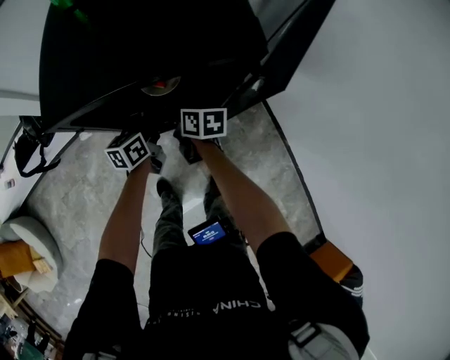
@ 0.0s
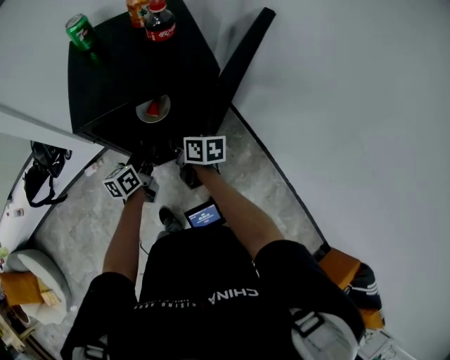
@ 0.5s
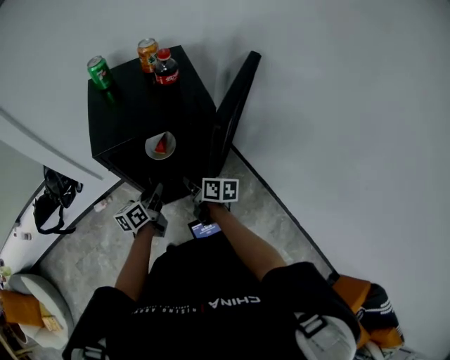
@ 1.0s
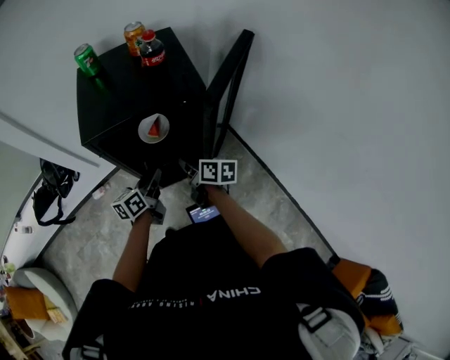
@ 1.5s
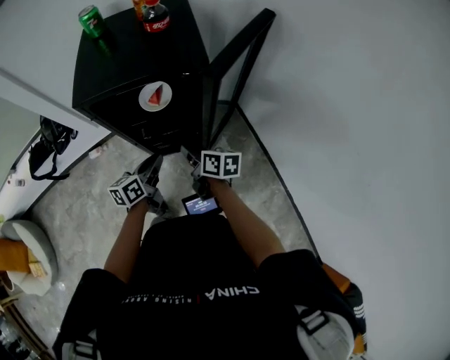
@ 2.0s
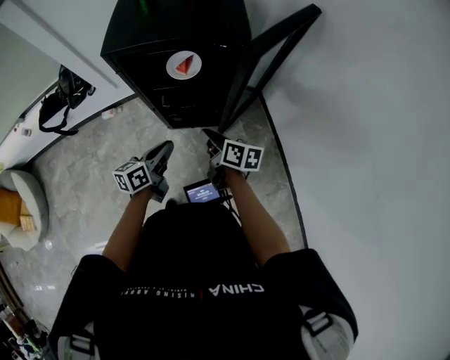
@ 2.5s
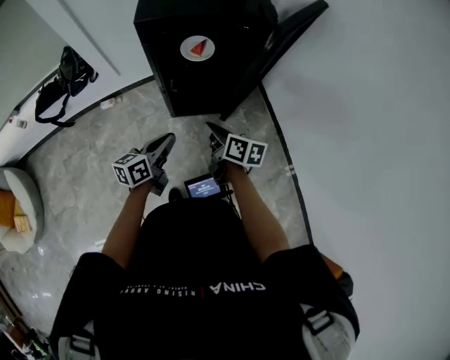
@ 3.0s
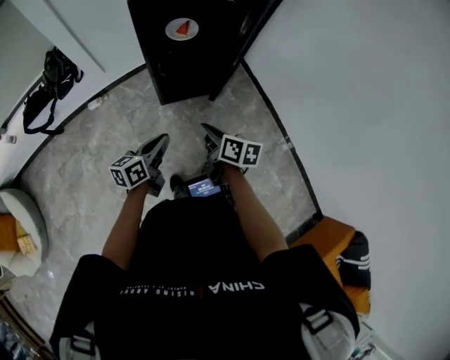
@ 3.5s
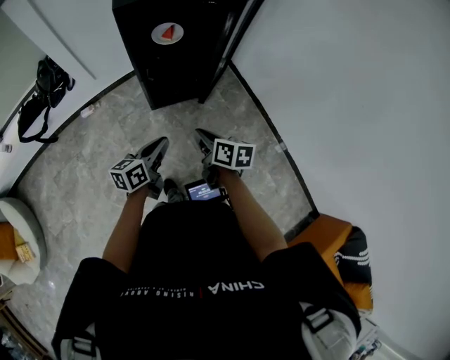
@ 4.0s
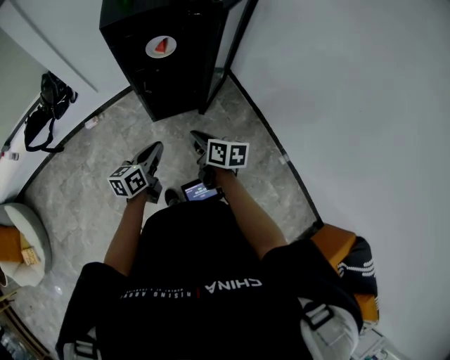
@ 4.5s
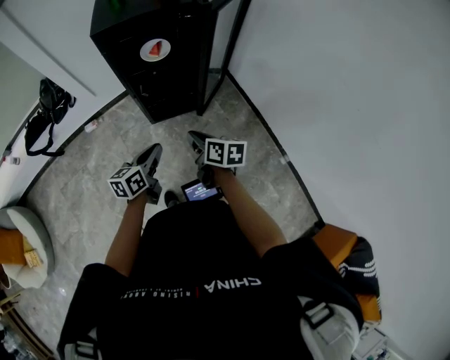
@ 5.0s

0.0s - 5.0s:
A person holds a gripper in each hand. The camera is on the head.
0.0s - 2.5s: The left gripper moves some 25 cm.
2.5s - 5.0s: The left gripper changes place by about 15 cm.

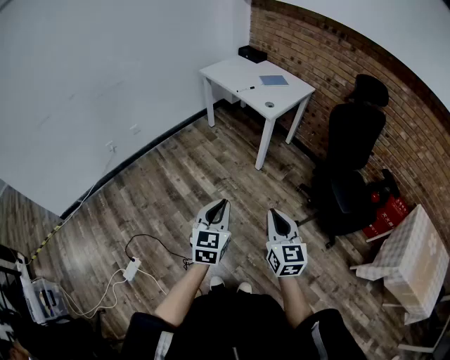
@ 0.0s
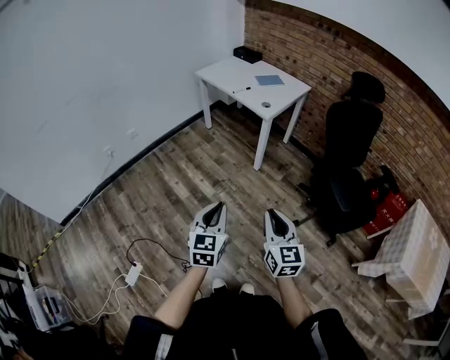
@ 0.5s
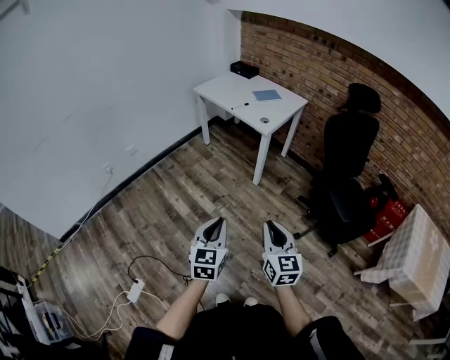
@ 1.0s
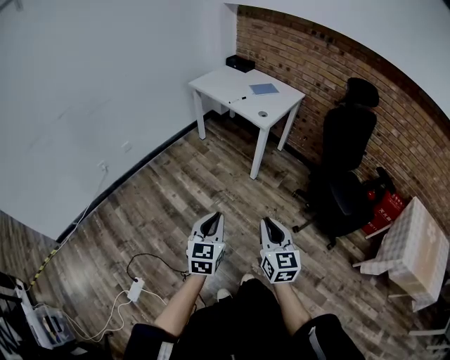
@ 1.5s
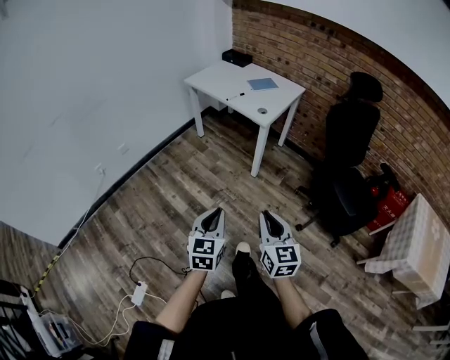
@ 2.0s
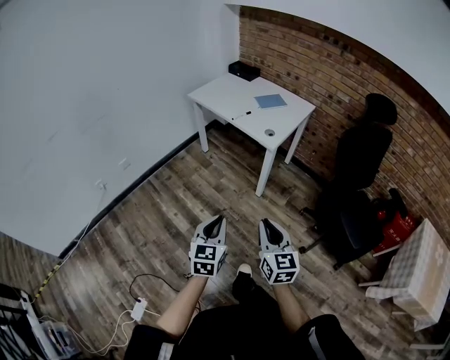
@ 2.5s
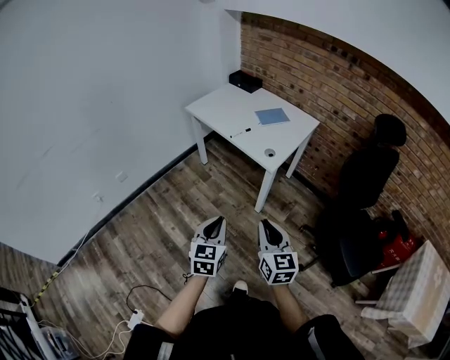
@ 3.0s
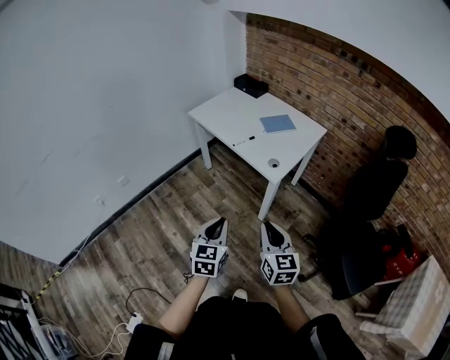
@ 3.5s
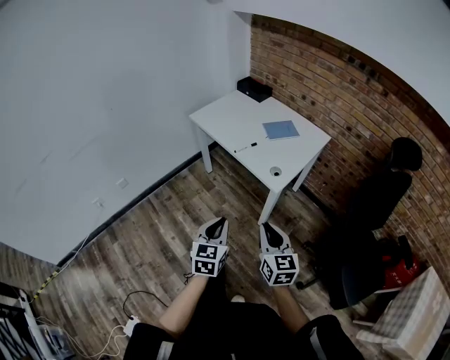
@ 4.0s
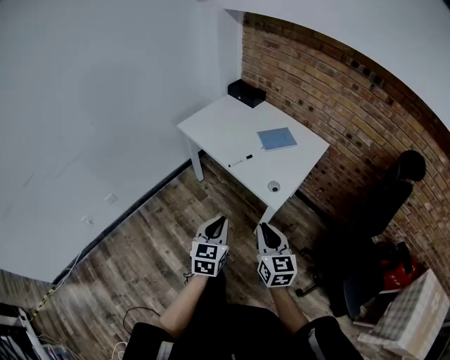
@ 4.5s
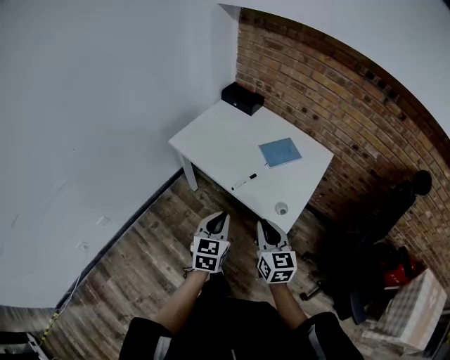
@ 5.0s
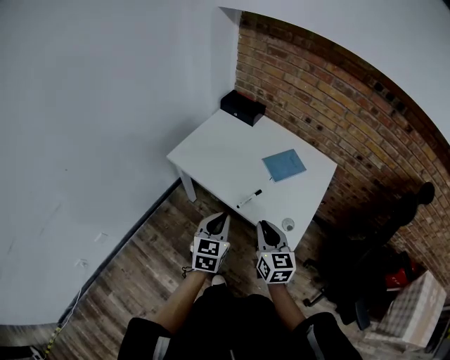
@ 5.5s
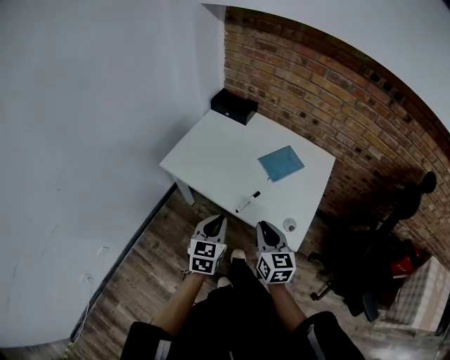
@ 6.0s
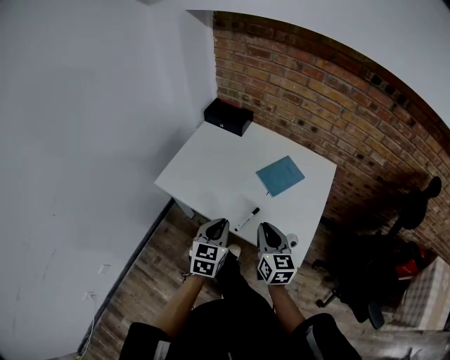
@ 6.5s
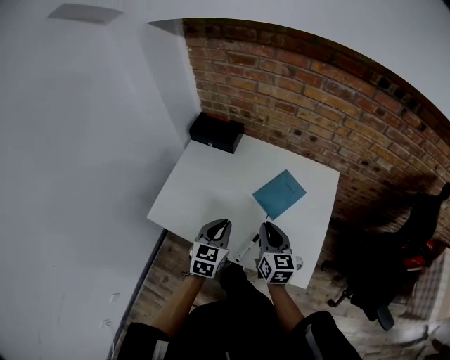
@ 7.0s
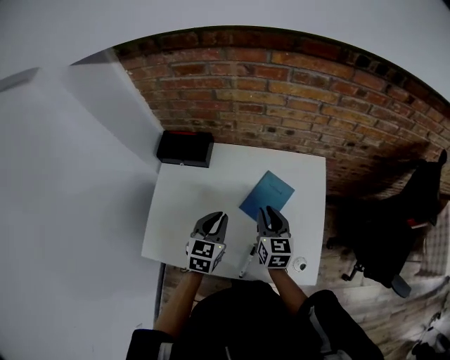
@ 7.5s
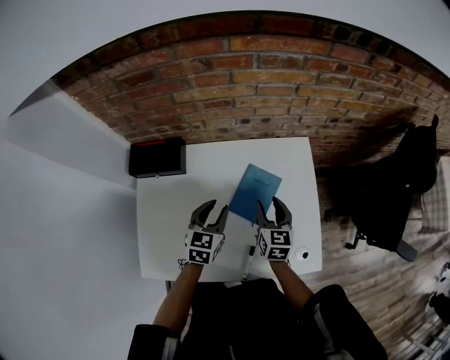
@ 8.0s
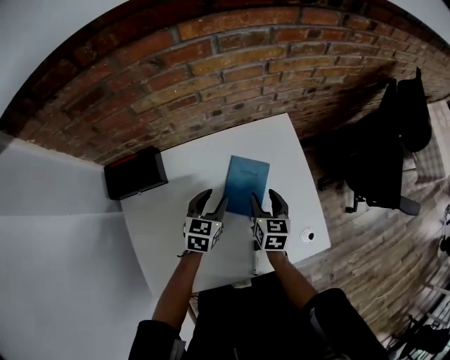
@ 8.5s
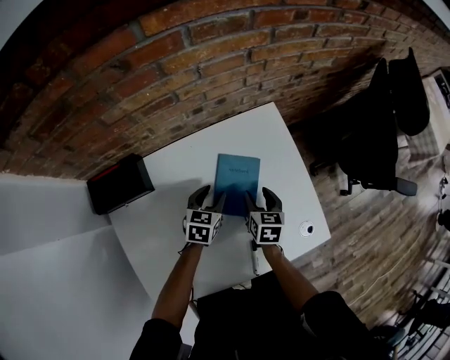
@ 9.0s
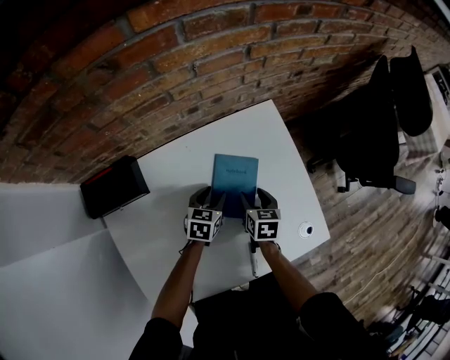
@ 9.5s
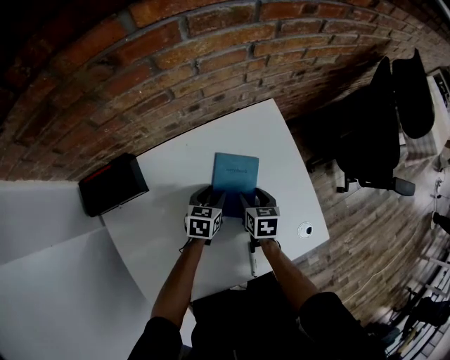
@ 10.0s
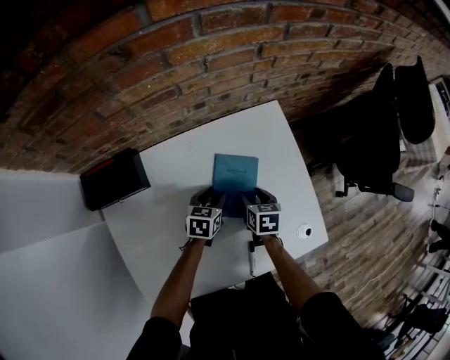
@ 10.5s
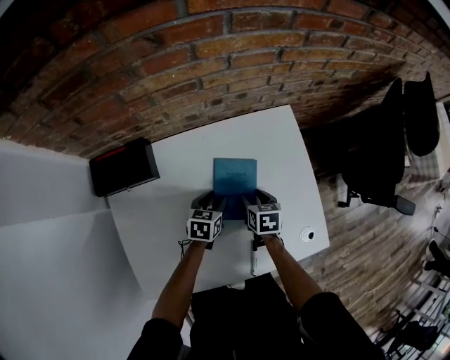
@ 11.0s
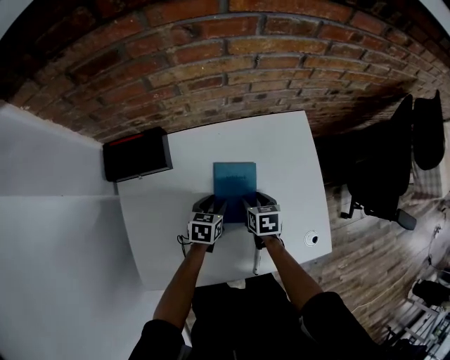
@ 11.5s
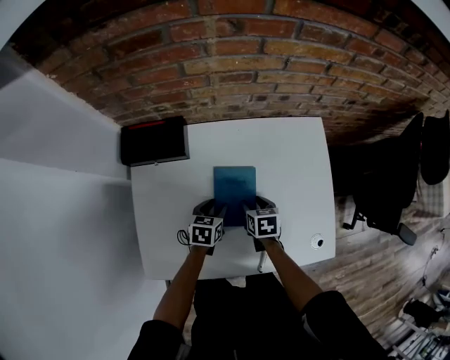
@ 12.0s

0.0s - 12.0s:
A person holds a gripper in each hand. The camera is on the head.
0.0s - 2.0s: The two grippers go roughly 10 cm forward and to the left.
2.0s - 4.0s: Both grippers move forward, about 40 cm.
4.0s - 6.0s: Both grippers are carried forward, about 40 cm.
6.0s - 8.0s: The right gripper changes place by about 40 cm, rotates some 40 degrees, and opens its fingers. The left gripper ends up approximately 40 cm from where it was, swivels some 40 degrees, and opens its fingers.
8.0s - 10.0s: The left gripper is displaced downward and forward by roughly 20 cm, and swivels some 30 degrees, while the right gripper goes approximately 15 cm downward, and turns by approximately 30 degrees.
10.0s - 12.0s: The right gripper moves to the left and backward, approximately 10 cm, and rotates some 20 degrees; the left gripper shifts about 15 cm backward and to the left.

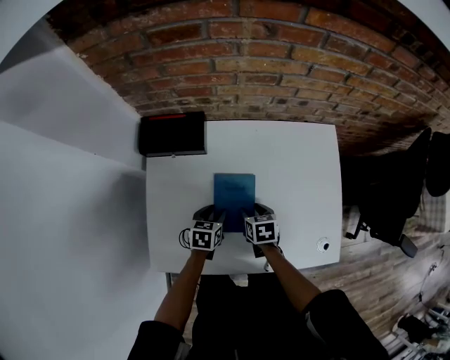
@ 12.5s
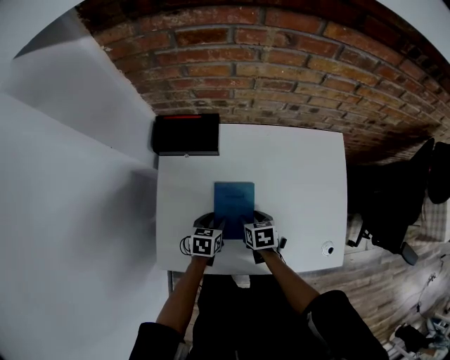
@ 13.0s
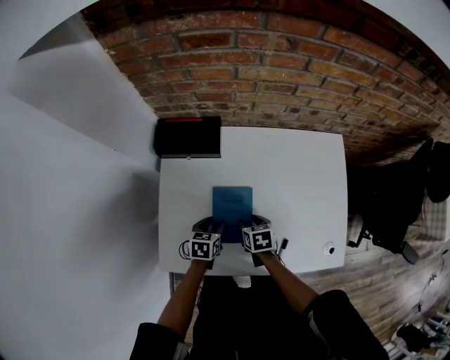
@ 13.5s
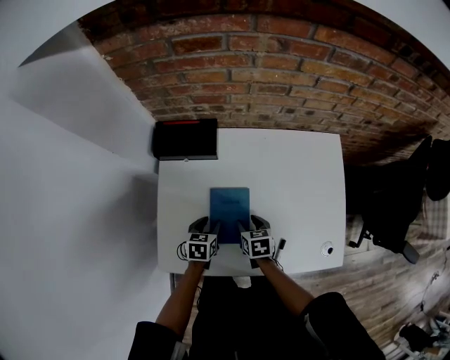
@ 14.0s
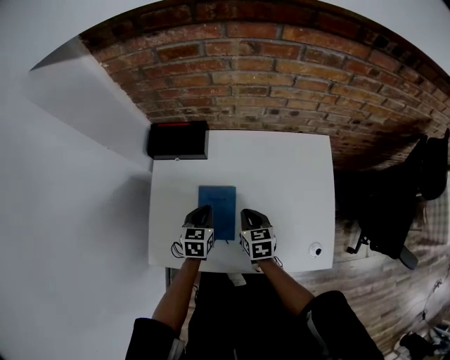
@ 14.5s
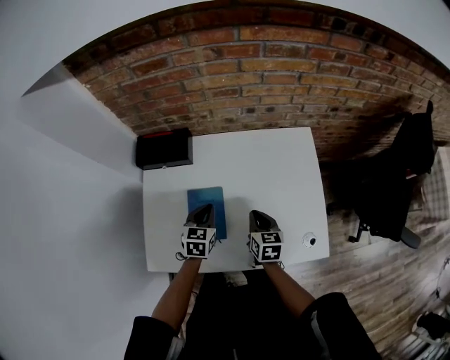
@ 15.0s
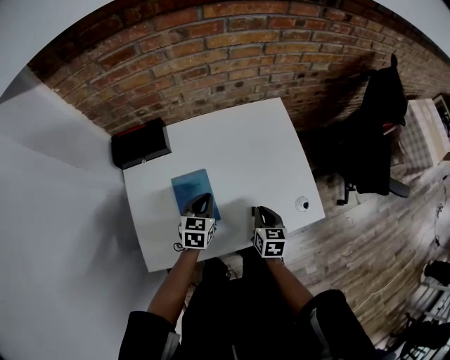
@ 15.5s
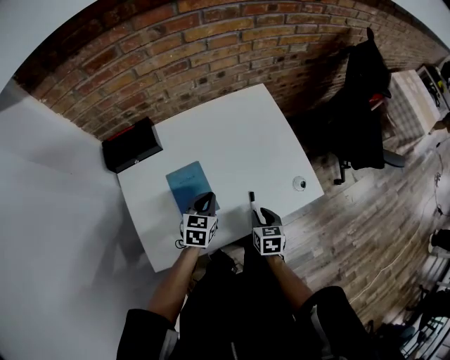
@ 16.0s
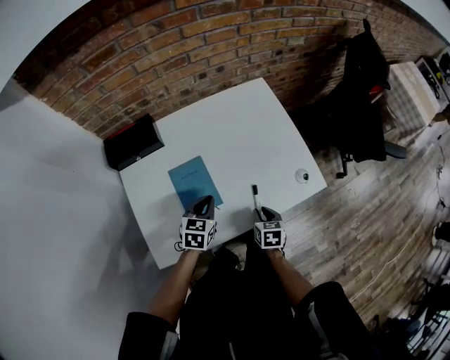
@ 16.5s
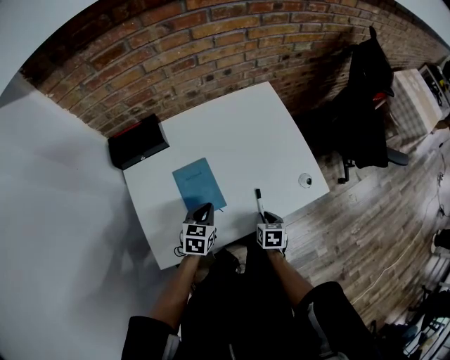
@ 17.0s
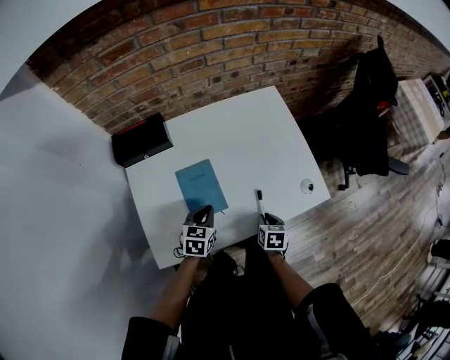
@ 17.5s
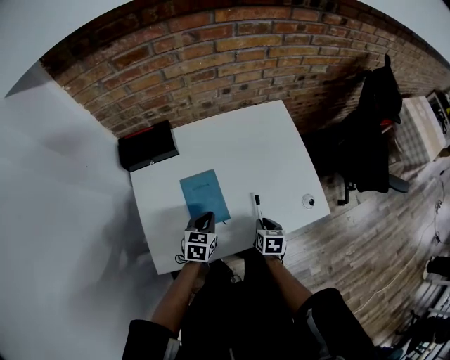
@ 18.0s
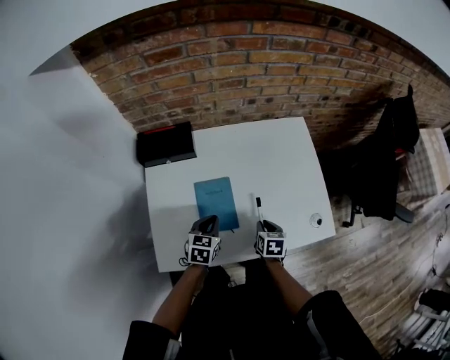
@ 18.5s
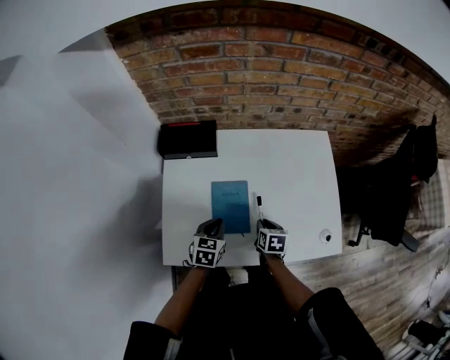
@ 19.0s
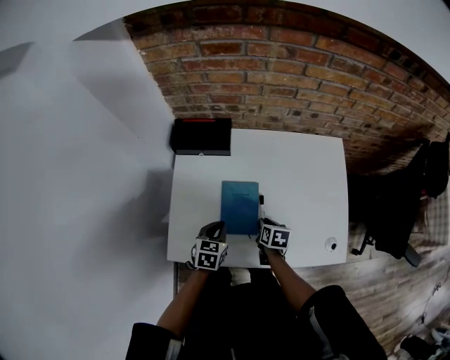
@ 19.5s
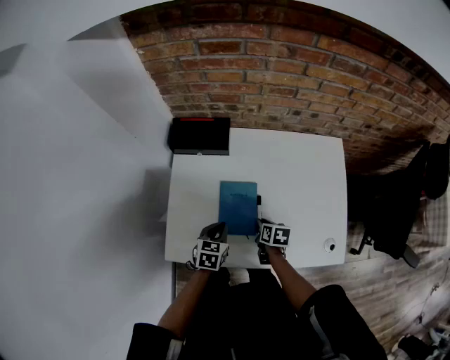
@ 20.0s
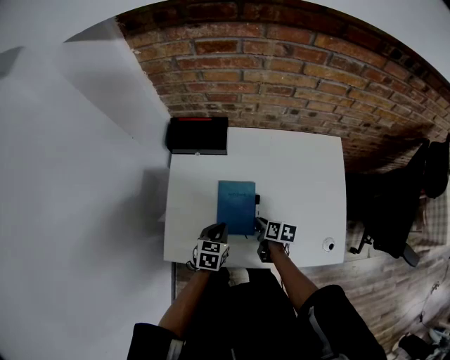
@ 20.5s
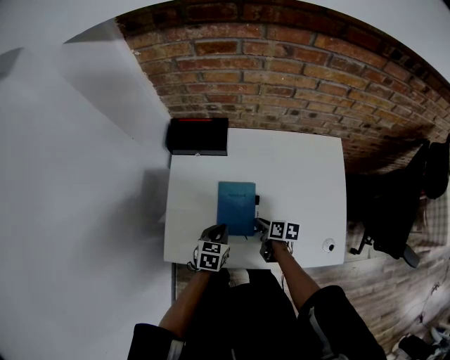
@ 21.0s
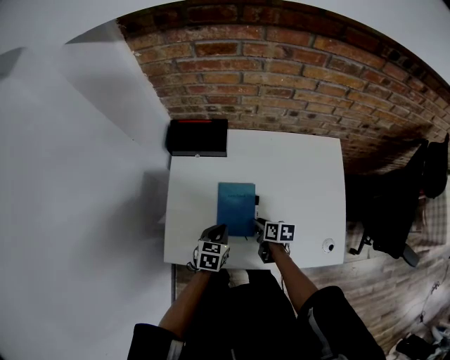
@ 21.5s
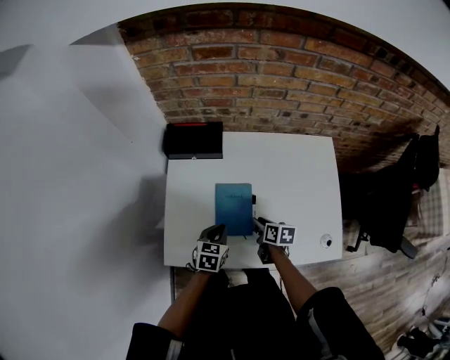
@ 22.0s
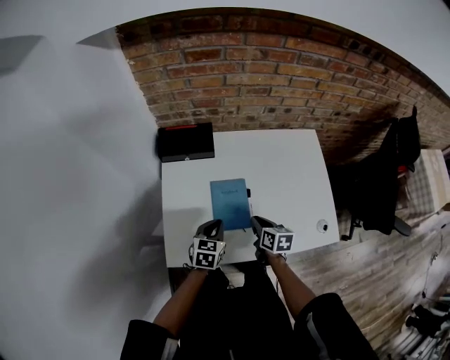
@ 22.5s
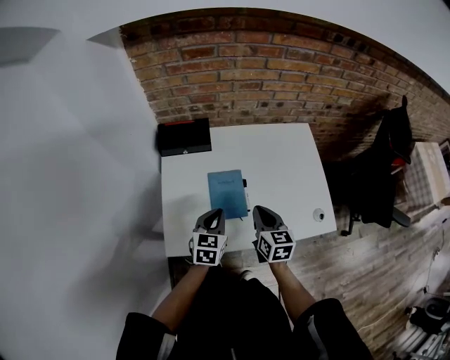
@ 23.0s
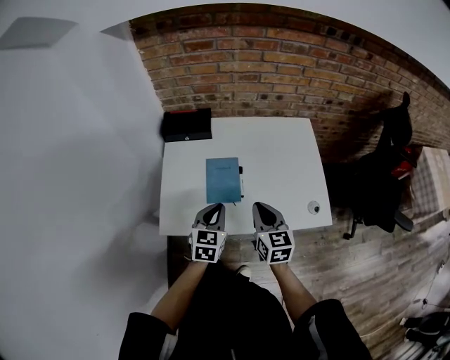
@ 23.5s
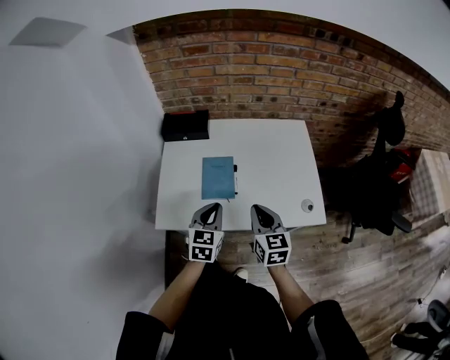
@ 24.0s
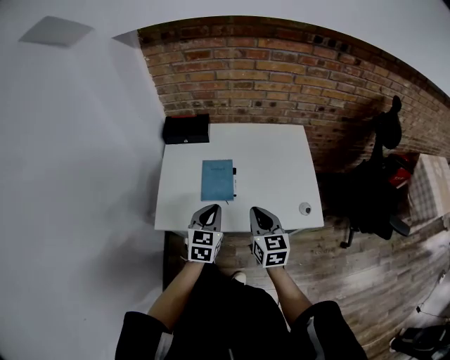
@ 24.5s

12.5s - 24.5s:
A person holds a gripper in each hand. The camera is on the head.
12.5s - 14.5s: The grippers both shift upward by about 10 cm. The left gripper closes up. Meanwhile the right gripper closes its fingers.
14.5s - 16.5s: The left gripper changes place by approximately 10 cm, and turns by approximately 30 degrees. The right gripper changes place by roughly 25 cm, and turns by approximately 30 degrees.
16.5s - 18.5s: The left gripper travels to the left by roughly 5 cm; the right gripper travels forward by about 5 cm.
18.5s - 20.5s: The right gripper heads to the left and forward, covering approximately 10 cm, and changes its angle by about 30 degrees.
20.5s - 22.5s: The right gripper heads upward, covering approximately 10 cm, and turns by some 20 degrees.
22.5s - 24.5s: The left gripper travels backward, upward and to the right by roughly 20 cm. Meanwhile the right gripper shifts some 20 cm upward, backward and to the right, and changes its angle by about 30 degrees.
